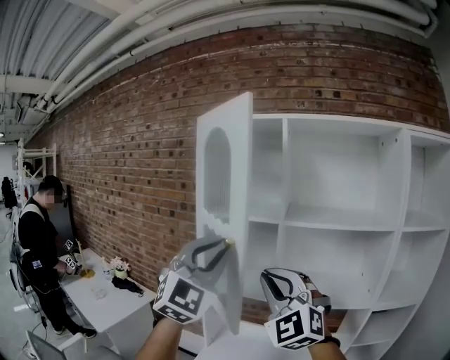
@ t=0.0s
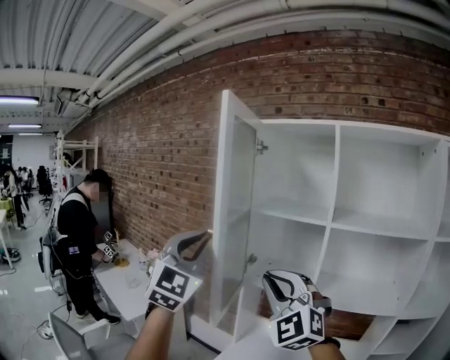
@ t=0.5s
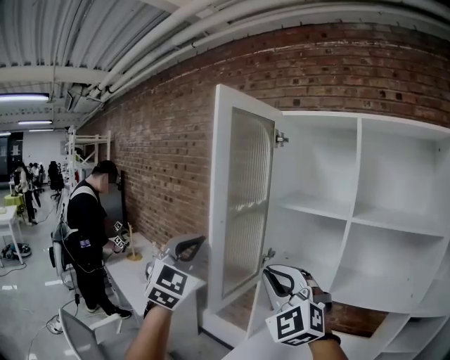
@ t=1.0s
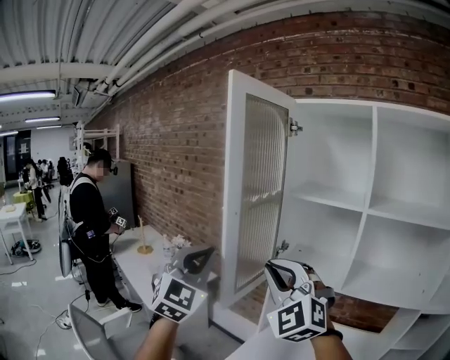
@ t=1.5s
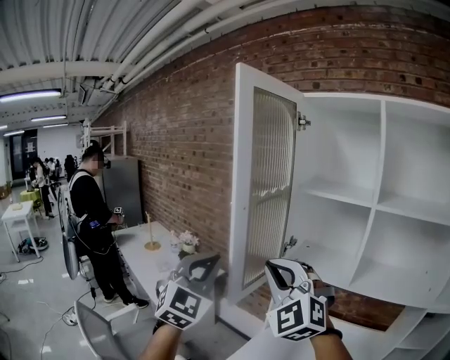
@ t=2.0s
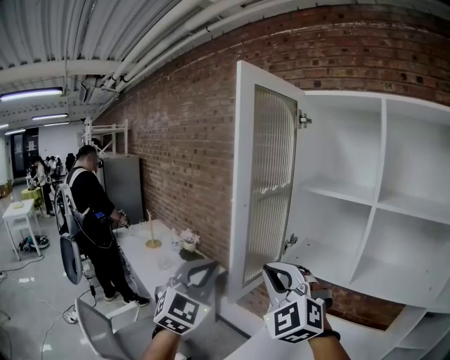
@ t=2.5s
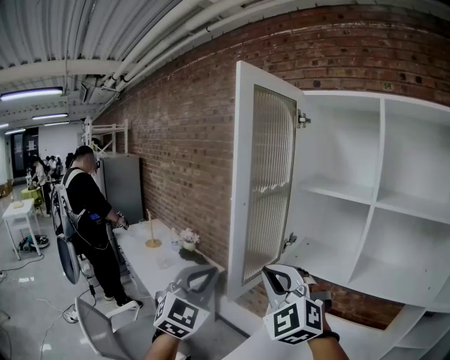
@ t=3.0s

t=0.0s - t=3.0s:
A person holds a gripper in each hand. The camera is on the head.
t=0.0s - t=1.5s: The grippers both shift to the left by about 25 cm. The left gripper rotates roughly 30 degrees.
t=1.5s - t=3.0s: The left gripper goes some 5 cm downward.

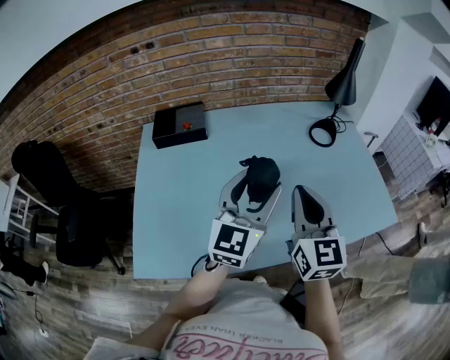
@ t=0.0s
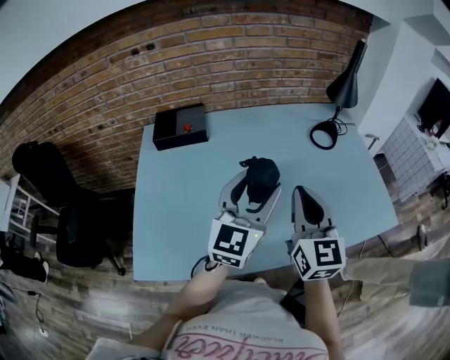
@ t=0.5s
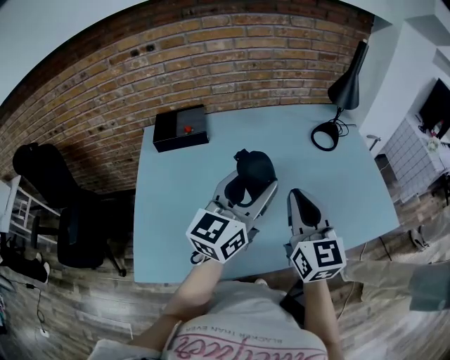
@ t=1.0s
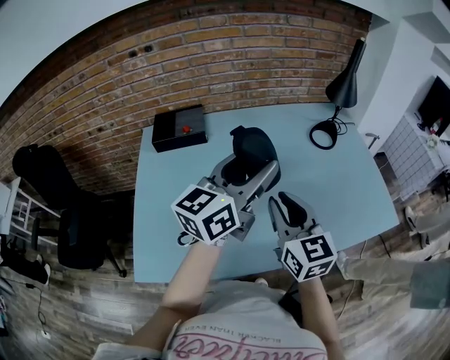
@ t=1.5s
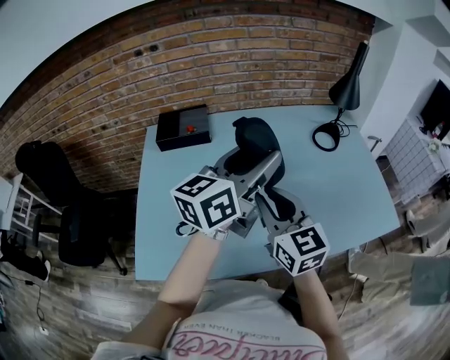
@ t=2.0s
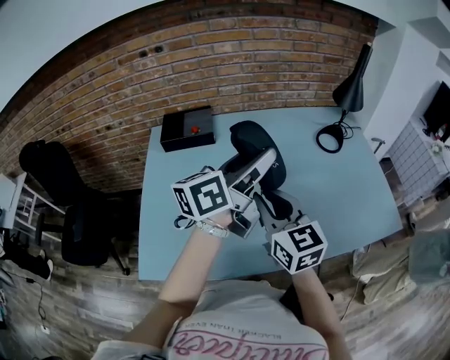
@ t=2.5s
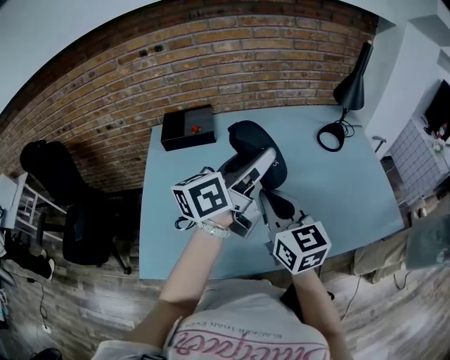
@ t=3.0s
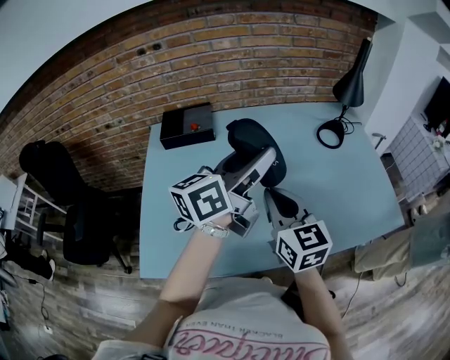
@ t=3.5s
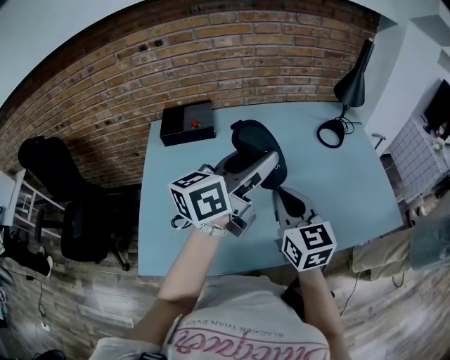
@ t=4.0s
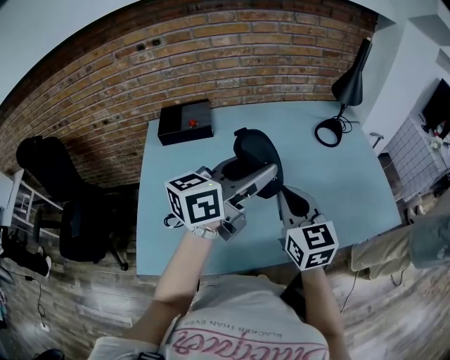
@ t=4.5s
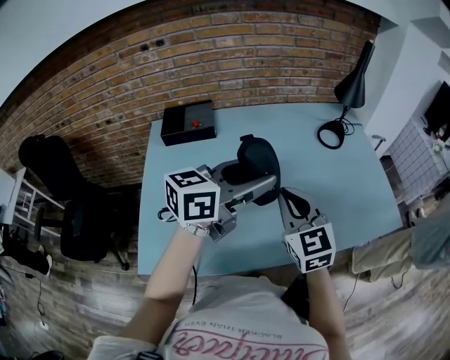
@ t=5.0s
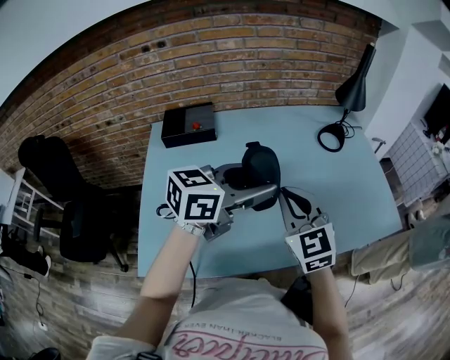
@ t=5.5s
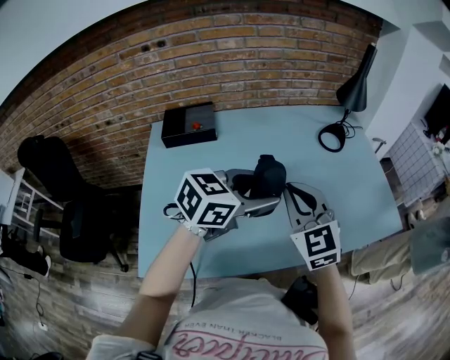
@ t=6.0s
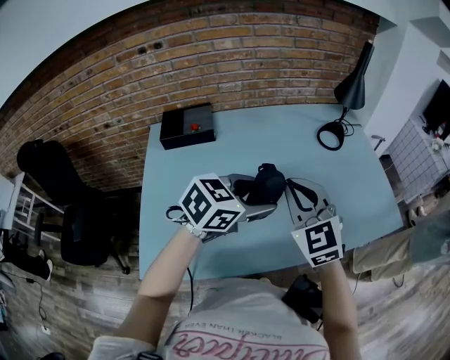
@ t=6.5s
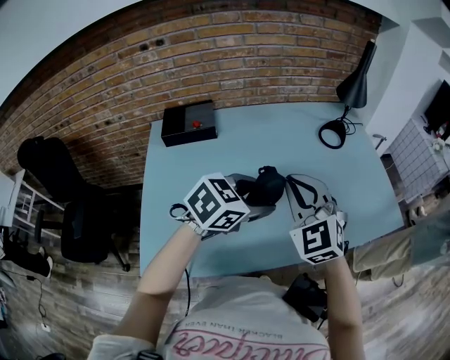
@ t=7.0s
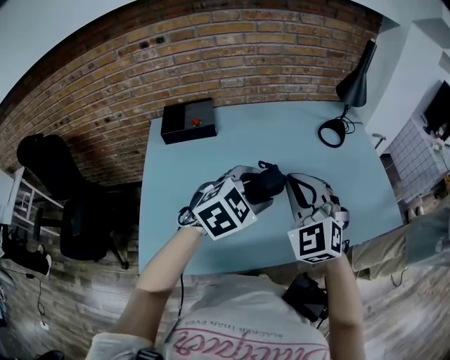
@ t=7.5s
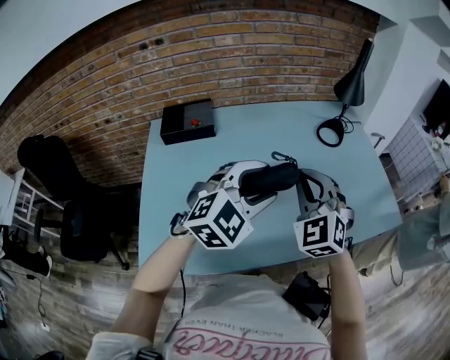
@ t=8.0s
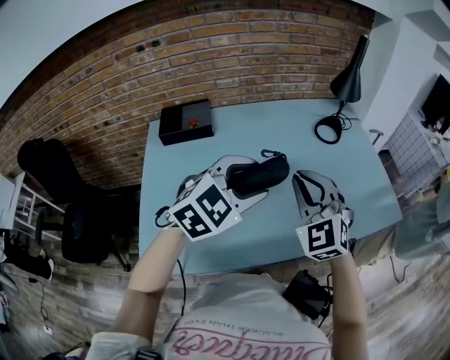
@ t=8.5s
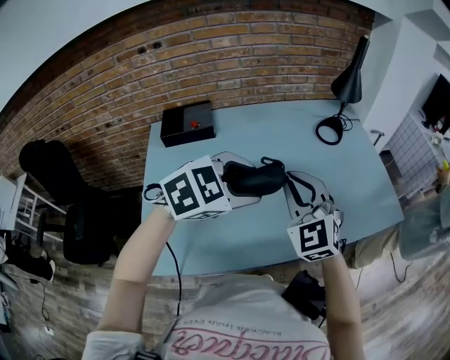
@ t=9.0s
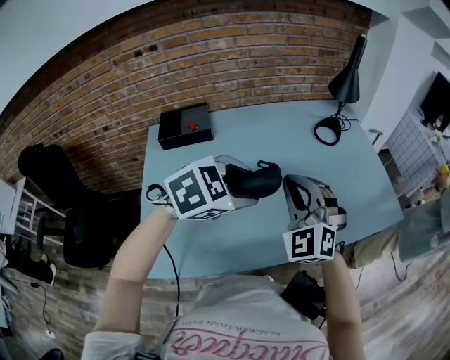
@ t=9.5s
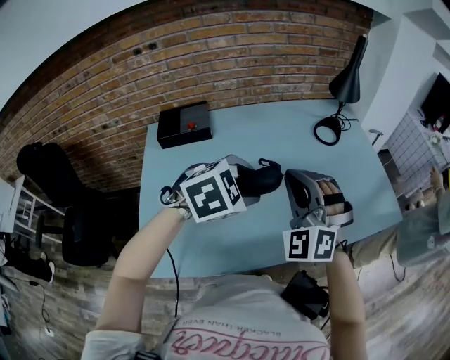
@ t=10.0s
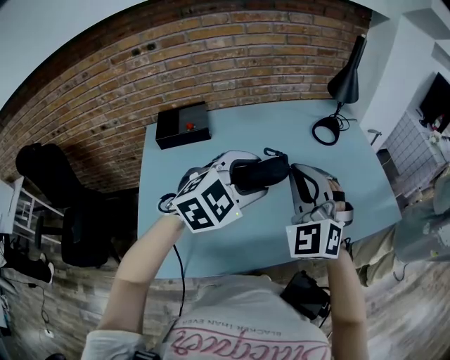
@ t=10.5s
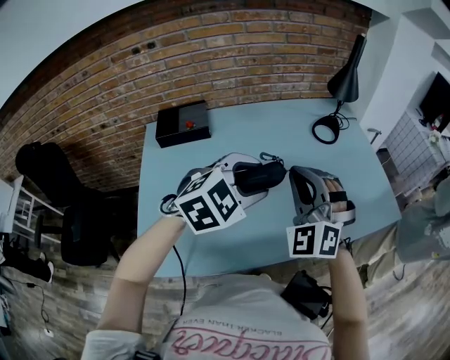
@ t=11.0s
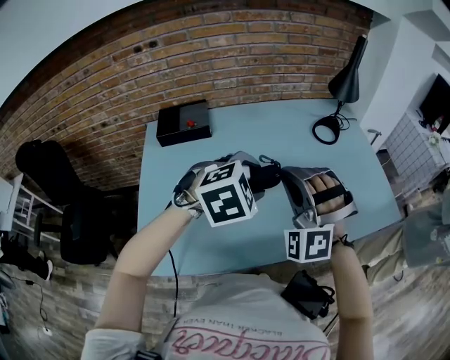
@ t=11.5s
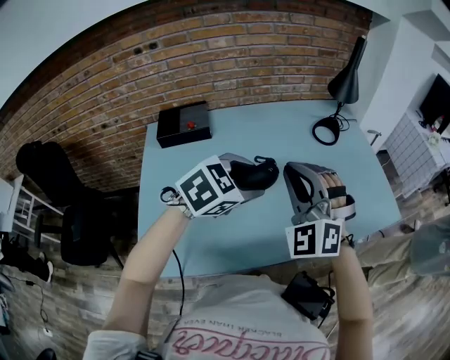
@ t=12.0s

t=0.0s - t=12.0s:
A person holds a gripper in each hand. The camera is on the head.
t=0.0s - t=2.0s: The right gripper heads to the left, covering approximately 10 cm. Meanwhile the left gripper shifts approximately 5 cm upward, and swivels some 30 degrees.
t=2.0s - t=4.0s: There are only small adjustments of the grippers.
t=4.0s - t=6.0s: The left gripper is displaced downward by approximately 5 cm, and changes its angle by about 40 degrees. Meanwhile the right gripper changes its angle by roughly 30 degrees.
t=6.0s - t=8.0s: The left gripper rolls clockwise, seen from behind, by some 40 degrees, while the right gripper rotates some 20 degrees.
t=8.0s - t=10.0s: The left gripper swivels some 30 degrees.

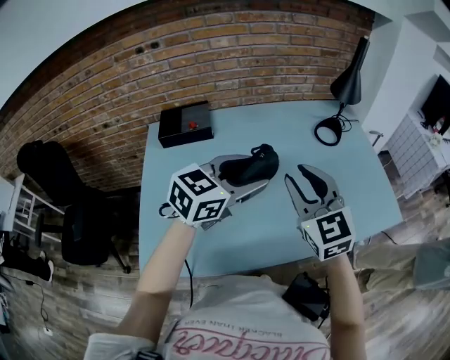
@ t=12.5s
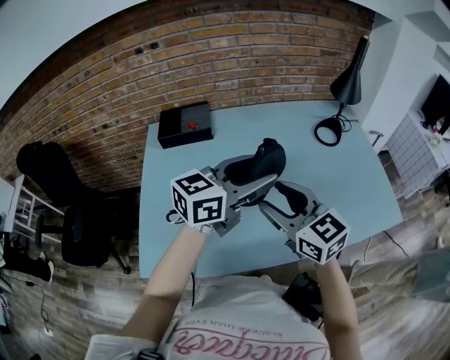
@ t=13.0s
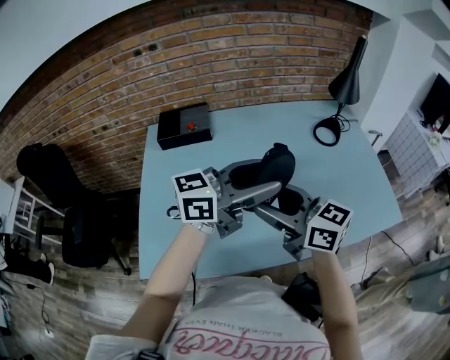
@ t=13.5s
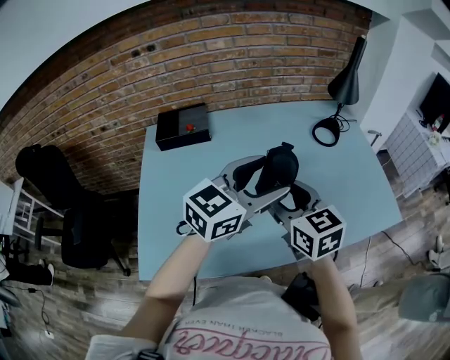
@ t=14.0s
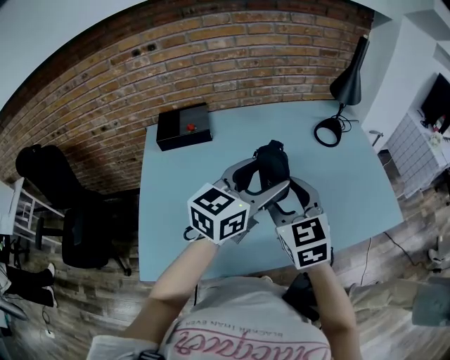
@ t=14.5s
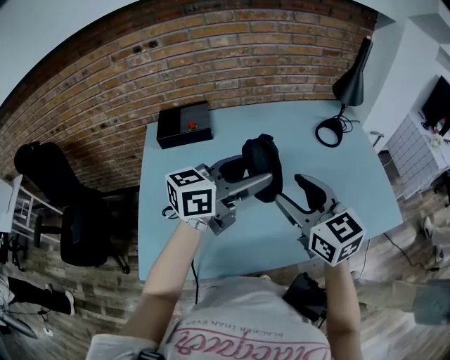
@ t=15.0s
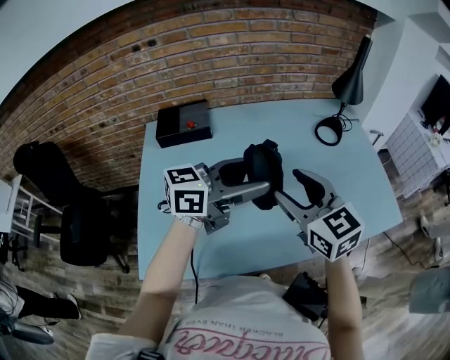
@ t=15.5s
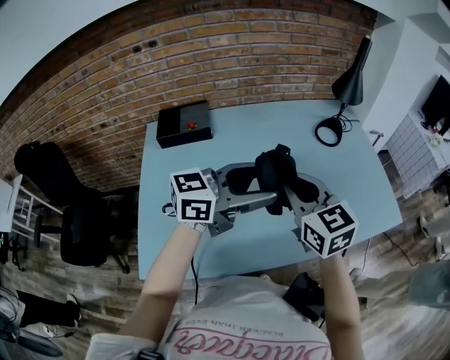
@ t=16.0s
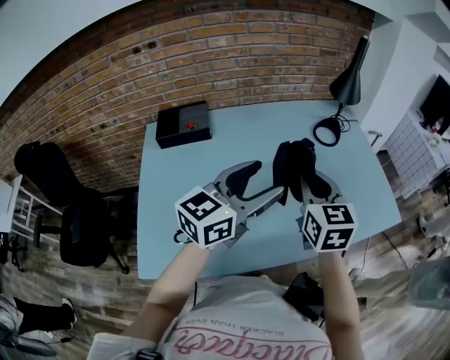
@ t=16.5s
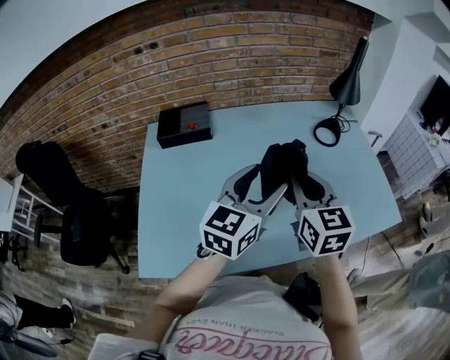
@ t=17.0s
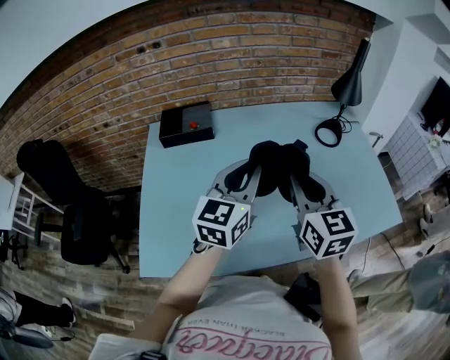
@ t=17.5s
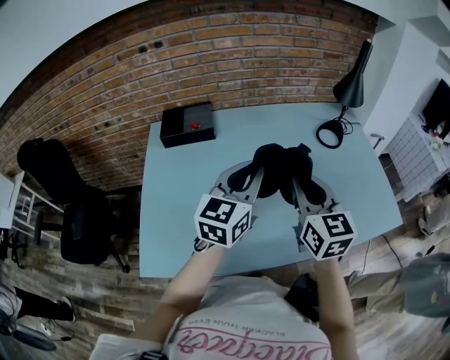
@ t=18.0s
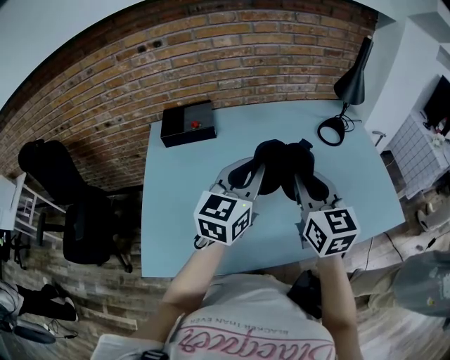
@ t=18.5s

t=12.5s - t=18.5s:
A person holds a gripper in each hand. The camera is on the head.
t=12.5s - t=14.5s: The right gripper opens up.
t=14.5s - t=16.5s: The right gripper travels to the right by approximately 5 cm, and closes its fingers.
t=16.5s - t=18.5s: The left gripper shifts by some 5 cm, swivels about 20 degrees, and closes.

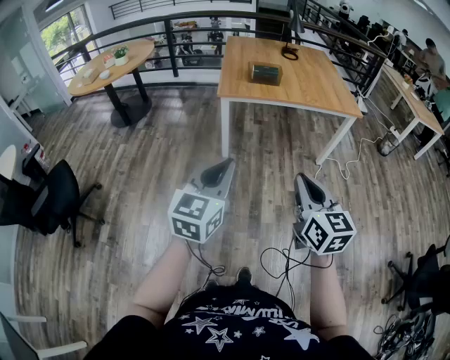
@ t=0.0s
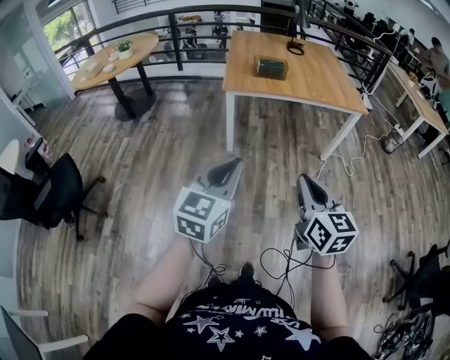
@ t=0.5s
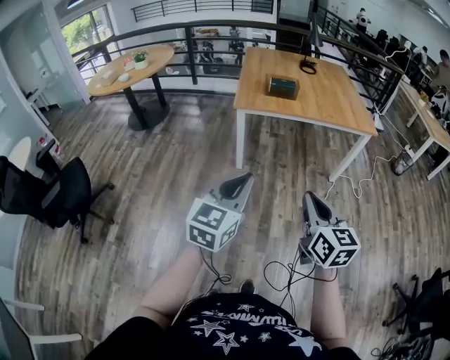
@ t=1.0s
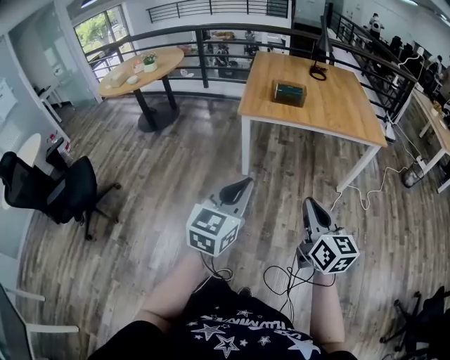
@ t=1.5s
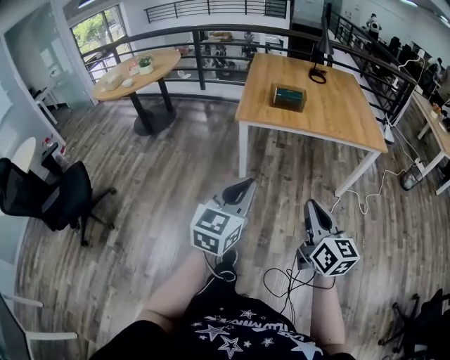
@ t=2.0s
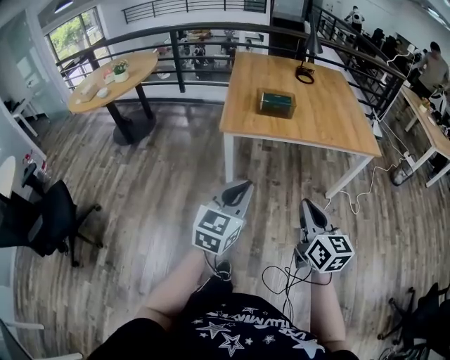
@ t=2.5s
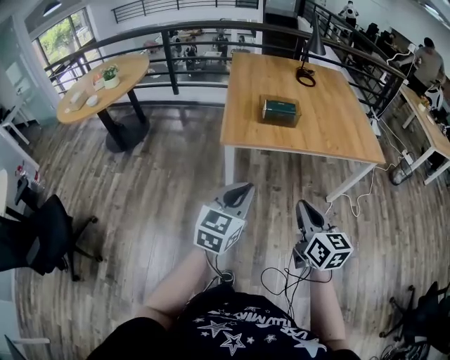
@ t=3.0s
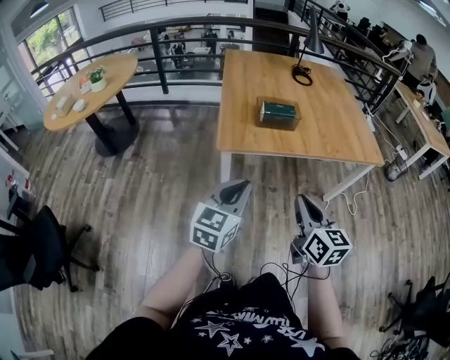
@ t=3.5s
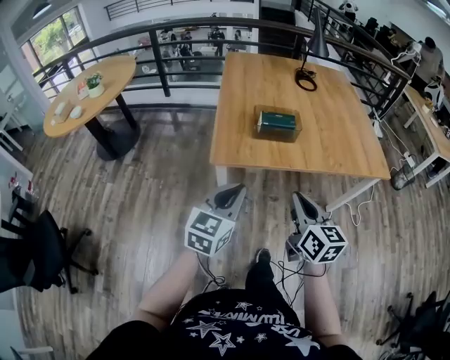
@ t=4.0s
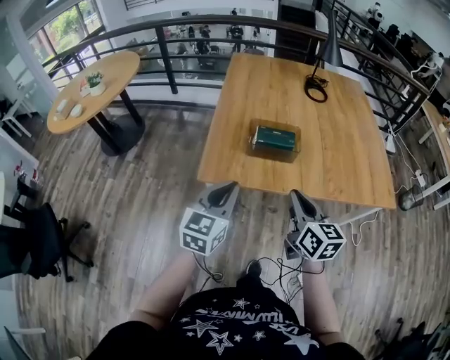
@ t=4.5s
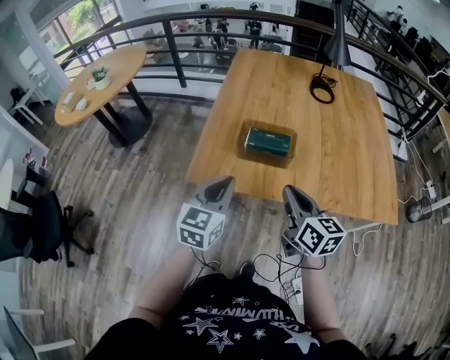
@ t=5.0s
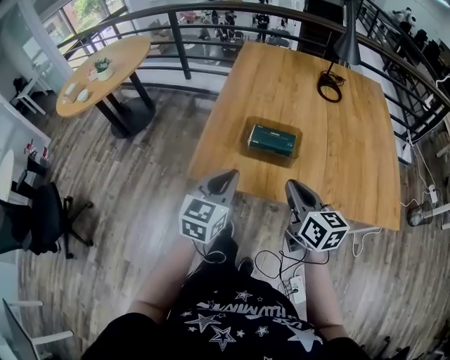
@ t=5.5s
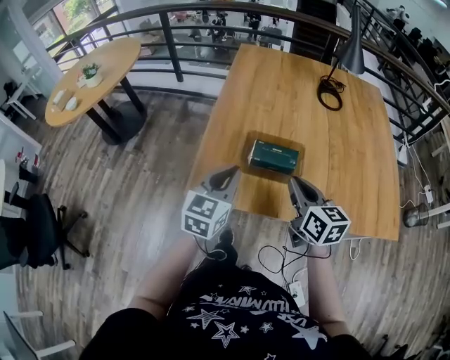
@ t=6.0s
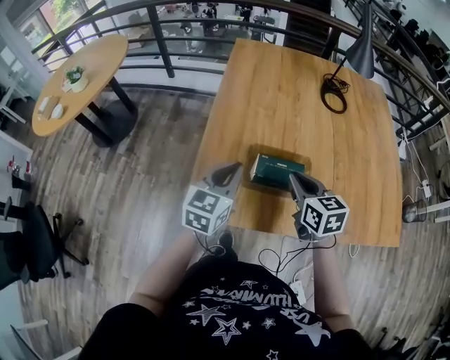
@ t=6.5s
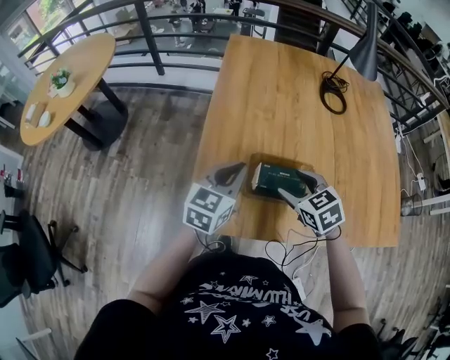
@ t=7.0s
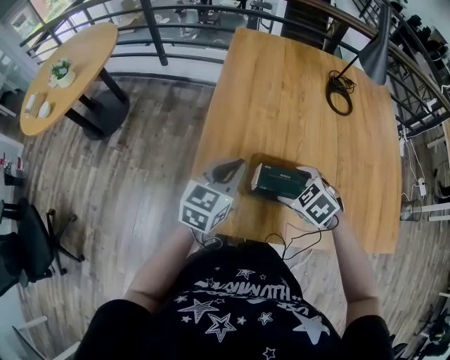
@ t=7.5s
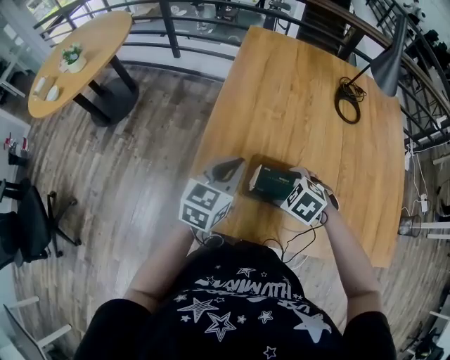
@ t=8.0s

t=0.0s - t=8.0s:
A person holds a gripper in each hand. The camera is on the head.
t=0.0s - t=2.0s: The left gripper goes about 15 cm forward and to the right, while the right gripper shifts roughly 10 cm forward.
t=2.0s - t=4.0s: Both grippers are carried forward, approximately 40 cm.
t=4.0s - t=6.0s: The two grippers go some 30 cm forward.
t=6.0s - t=8.0s: The right gripper travels forward and downward by approximately 20 cm, angles its fingers downward, by some 50 degrees, and opens its fingers. Meanwhile the left gripper travels forward by approximately 15 cm.
